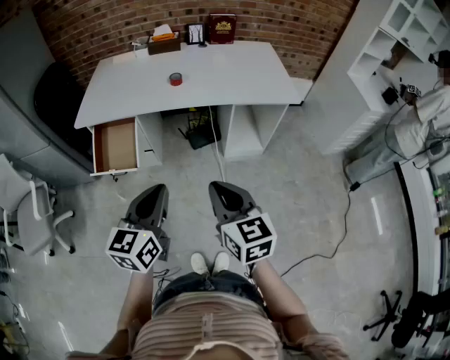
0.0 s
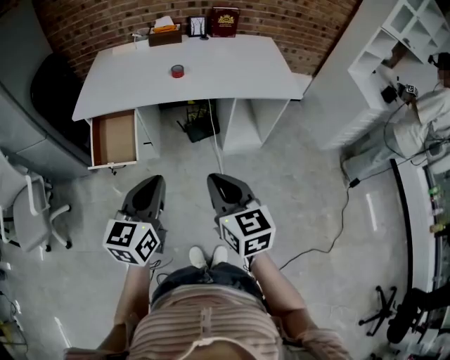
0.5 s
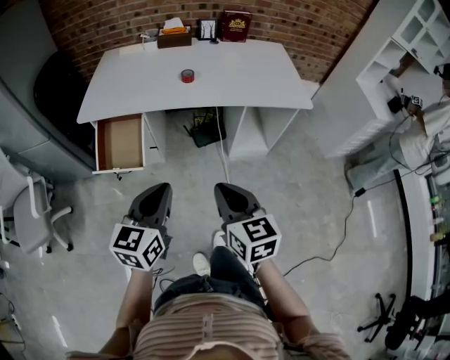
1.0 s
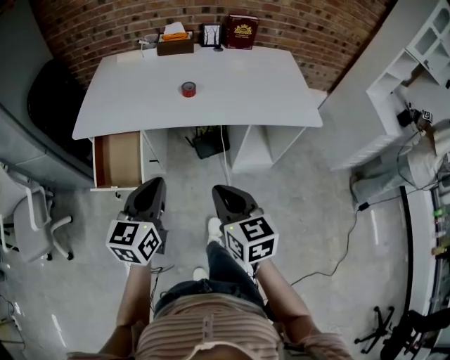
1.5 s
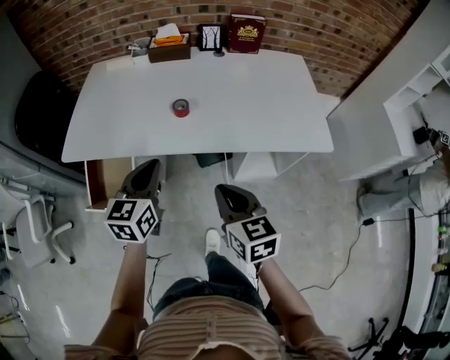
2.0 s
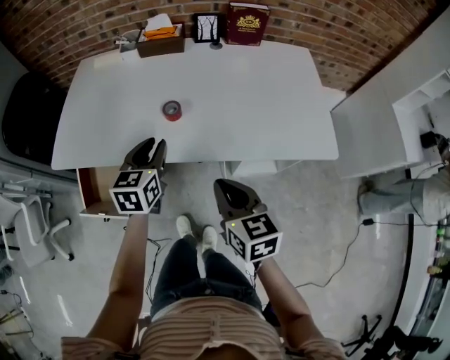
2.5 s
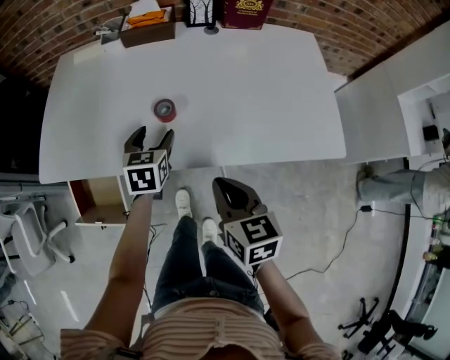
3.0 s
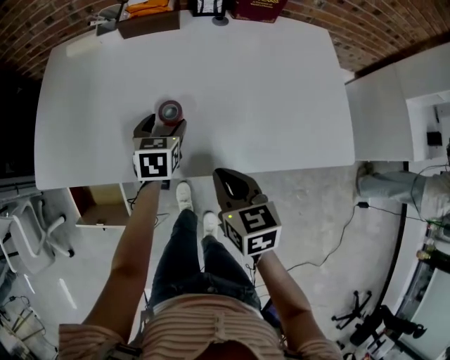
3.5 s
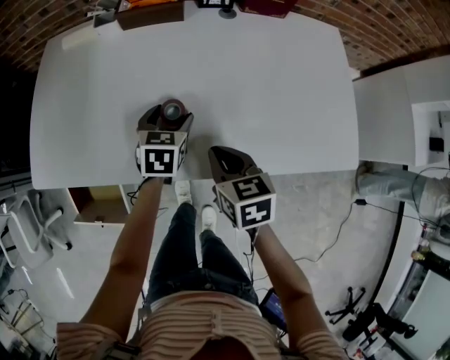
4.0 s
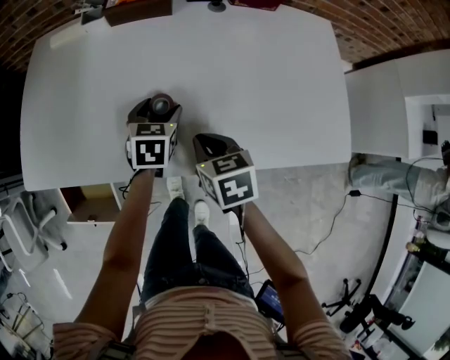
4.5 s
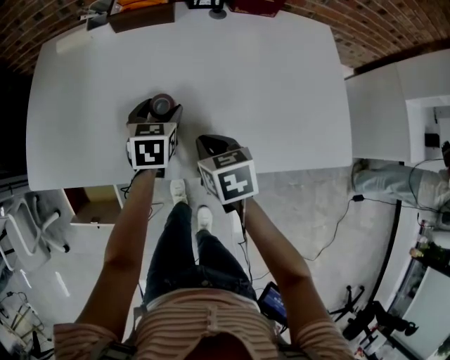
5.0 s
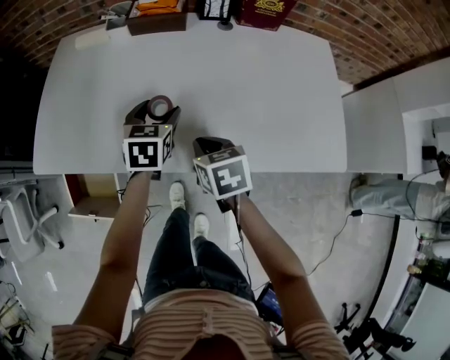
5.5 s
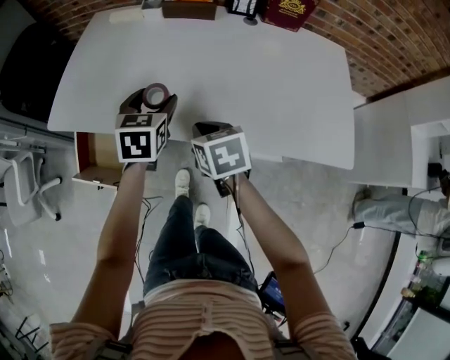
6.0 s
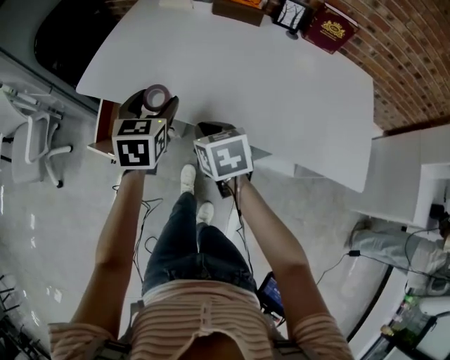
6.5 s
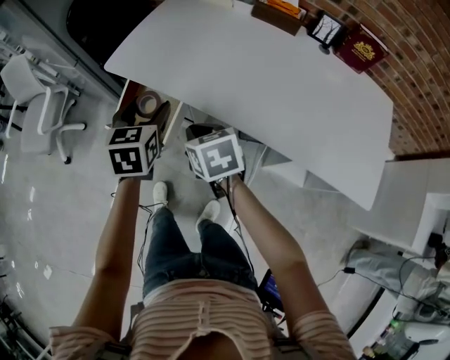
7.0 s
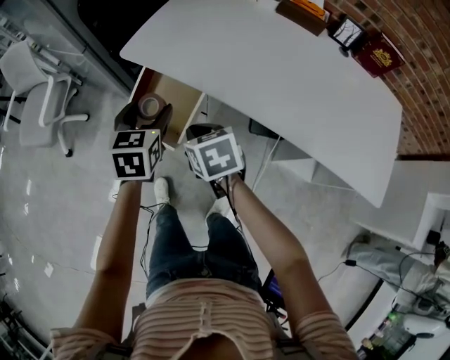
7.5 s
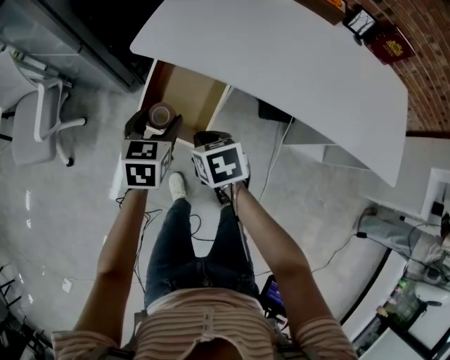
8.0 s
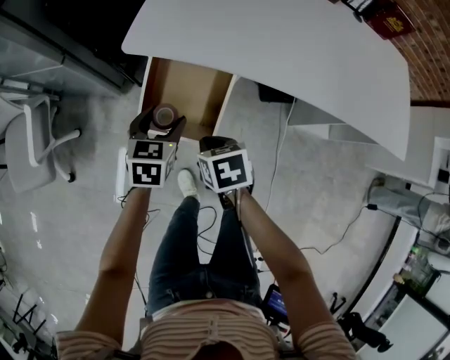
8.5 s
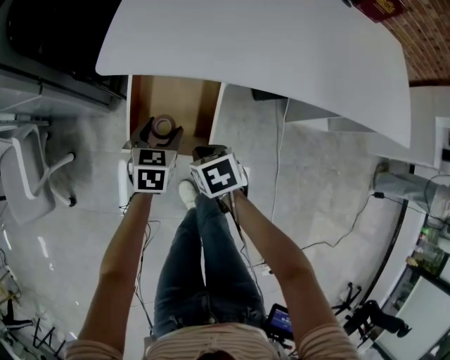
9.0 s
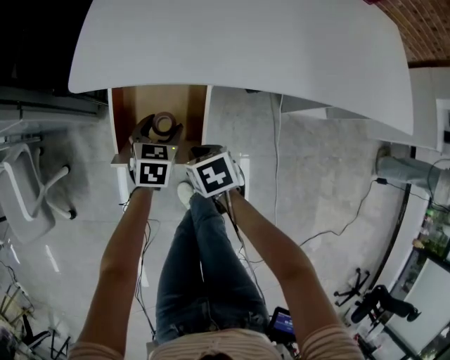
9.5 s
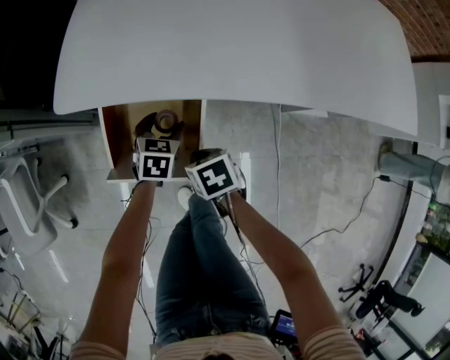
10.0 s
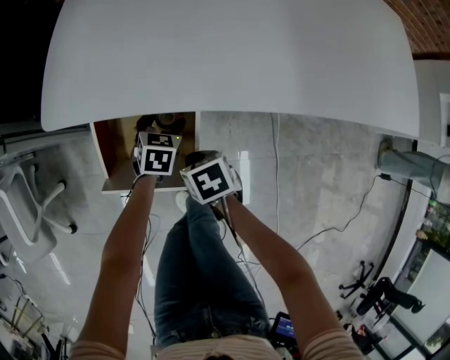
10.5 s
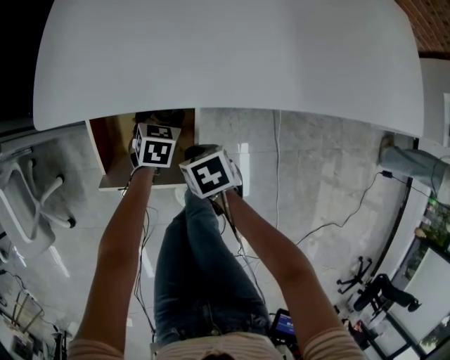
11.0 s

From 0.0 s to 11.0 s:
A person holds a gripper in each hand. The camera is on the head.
From 0.0 s to 2.0 s: Both grippers move forward, roughly 40 cm.
From 2.0 s to 3.5 s: The right gripper travels forward by about 20 cm. Meanwhile the left gripper travels forward and downward by approximately 35 cm, turns by roughly 30 degrees, and opens.
From 3.5 s to 5.5 s: The right gripper goes roughly 5 cm forward. Meanwhile the left gripper moves upward, roughly 5 cm.
From 5.5 s to 7.5 s: The left gripper moves approximately 40 cm, and changes its angle by roughly 30 degrees. The right gripper ends up about 35 cm from where it was, and swivels some 30 degrees.
From 7.5 s to 9.0 s: The left gripper travels downward by approximately 25 cm, and turns by some 30 degrees. Meanwhile the right gripper is displaced downward and to the left by approximately 25 cm, and swivels approximately 30 degrees.
From 9.0 s to 11.0 s: The left gripper goes some 20 cm downward, to the right and forward, while the right gripper moves downward, to the right and forward, some 15 cm.

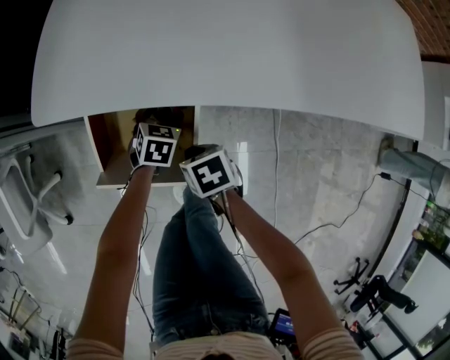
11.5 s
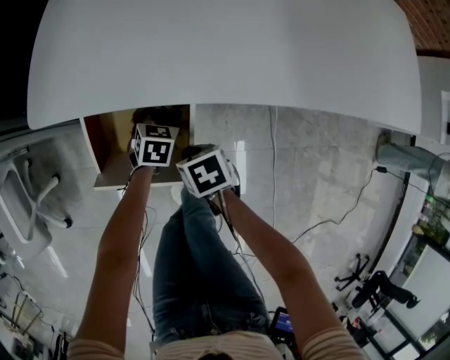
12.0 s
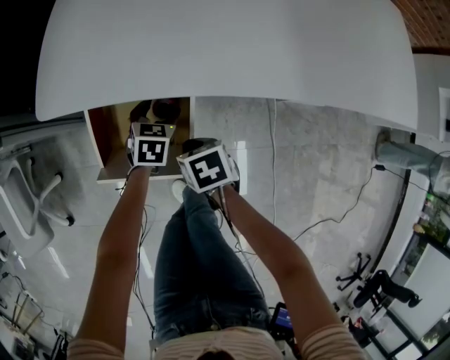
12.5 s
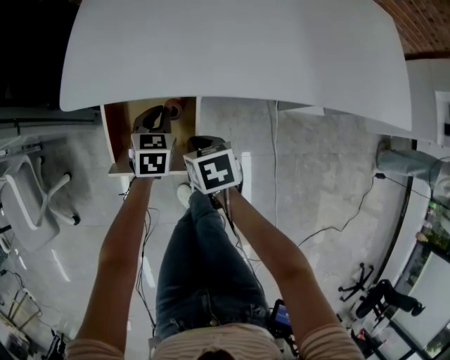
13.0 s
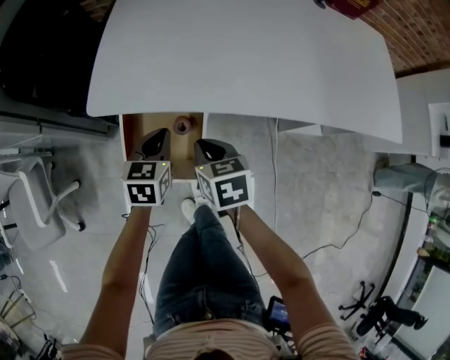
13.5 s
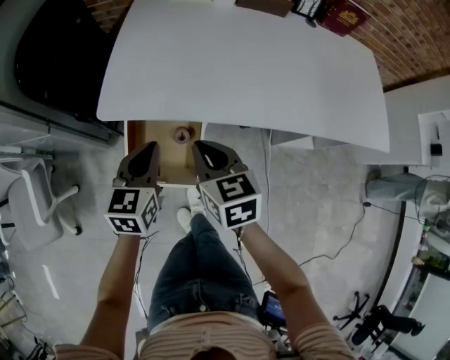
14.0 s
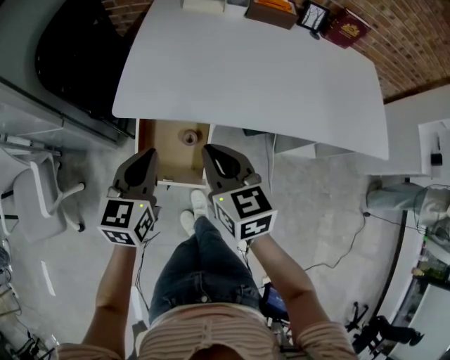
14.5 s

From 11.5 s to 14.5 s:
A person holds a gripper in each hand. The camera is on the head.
From 11.5 s to 13.0 s: Both grippers travel together upward, some 10 cm. The left gripper closes its fingers.
From 13.0 s to 14.5 s: The two grippers go about 30 cm upward. The right gripper tips its fingers upward by some 30 degrees, while the left gripper changes its angle by roughly 20 degrees.
